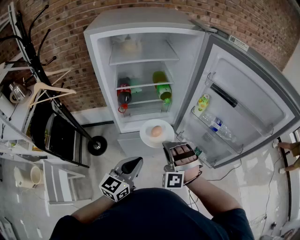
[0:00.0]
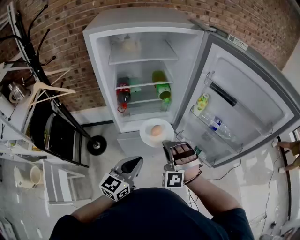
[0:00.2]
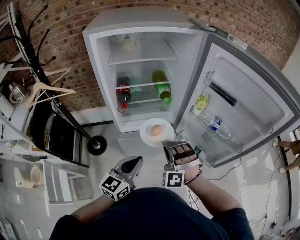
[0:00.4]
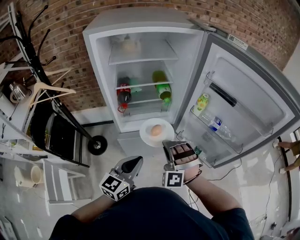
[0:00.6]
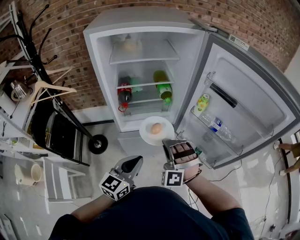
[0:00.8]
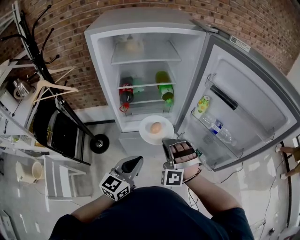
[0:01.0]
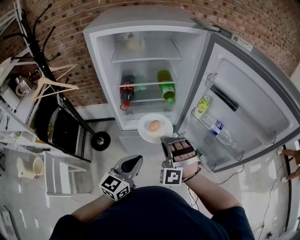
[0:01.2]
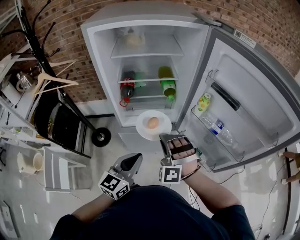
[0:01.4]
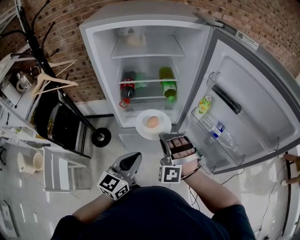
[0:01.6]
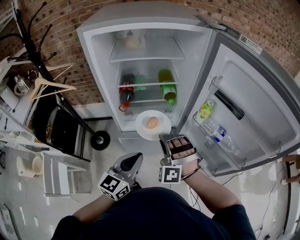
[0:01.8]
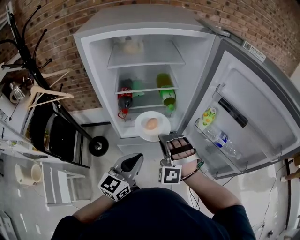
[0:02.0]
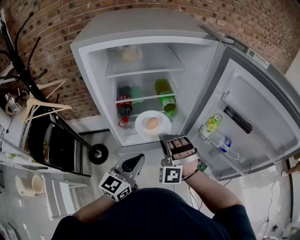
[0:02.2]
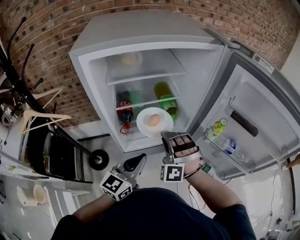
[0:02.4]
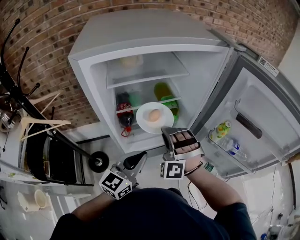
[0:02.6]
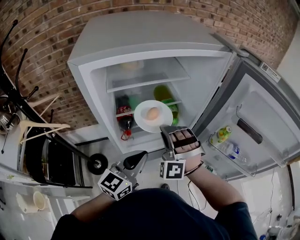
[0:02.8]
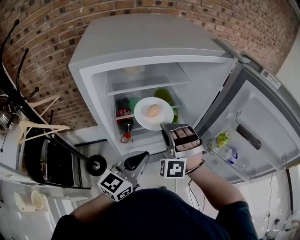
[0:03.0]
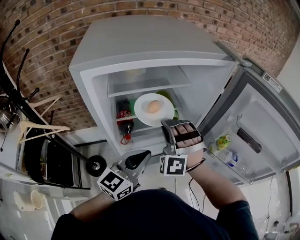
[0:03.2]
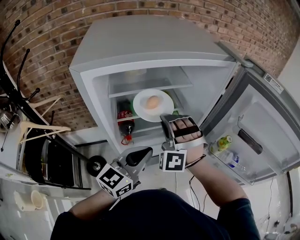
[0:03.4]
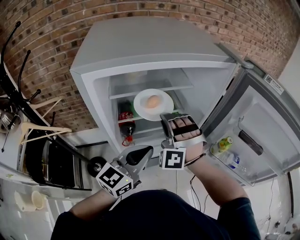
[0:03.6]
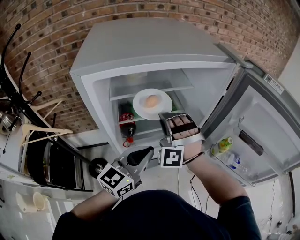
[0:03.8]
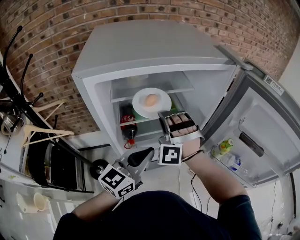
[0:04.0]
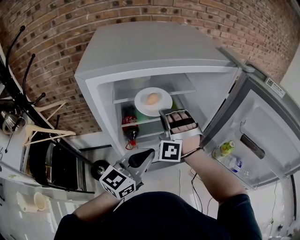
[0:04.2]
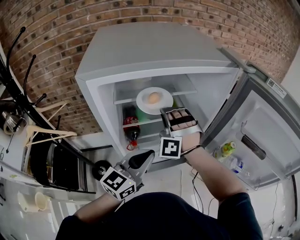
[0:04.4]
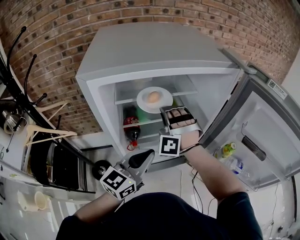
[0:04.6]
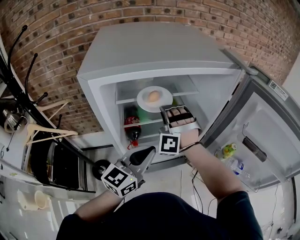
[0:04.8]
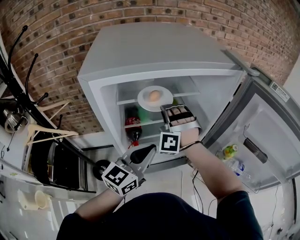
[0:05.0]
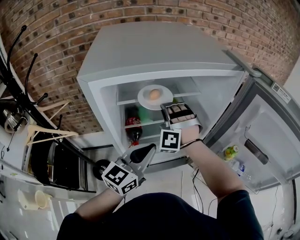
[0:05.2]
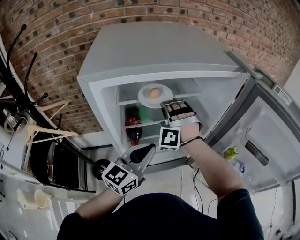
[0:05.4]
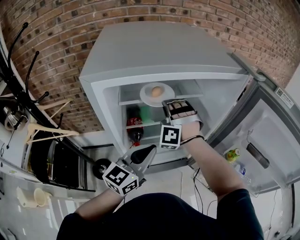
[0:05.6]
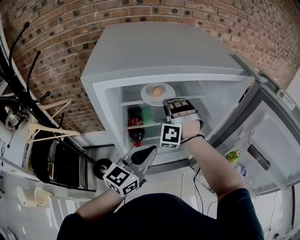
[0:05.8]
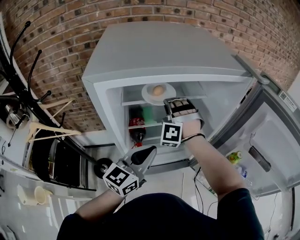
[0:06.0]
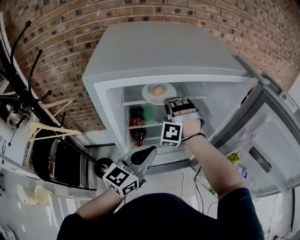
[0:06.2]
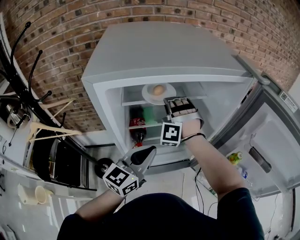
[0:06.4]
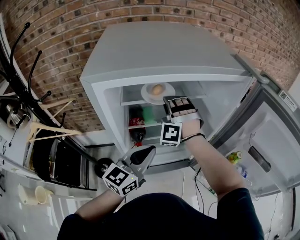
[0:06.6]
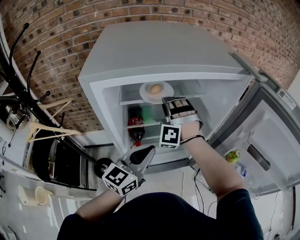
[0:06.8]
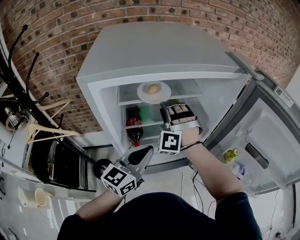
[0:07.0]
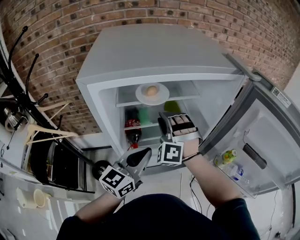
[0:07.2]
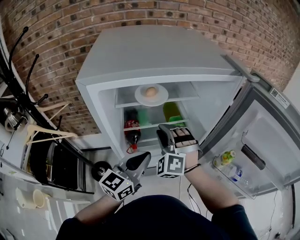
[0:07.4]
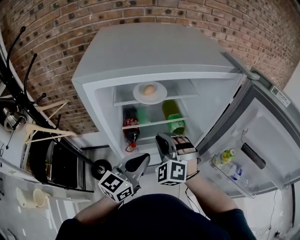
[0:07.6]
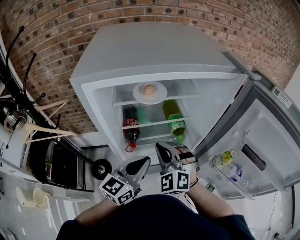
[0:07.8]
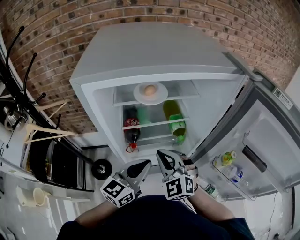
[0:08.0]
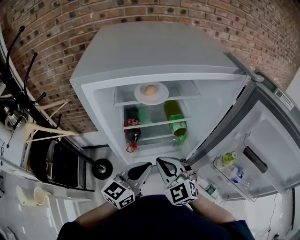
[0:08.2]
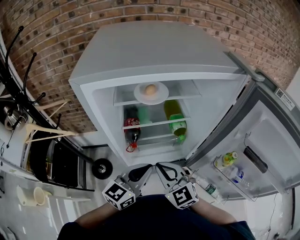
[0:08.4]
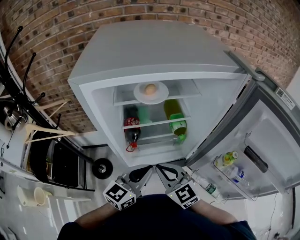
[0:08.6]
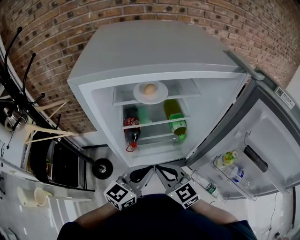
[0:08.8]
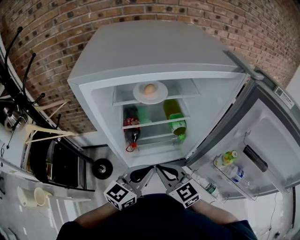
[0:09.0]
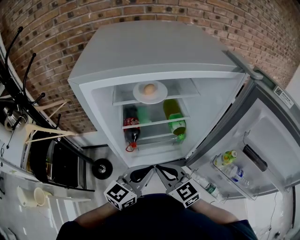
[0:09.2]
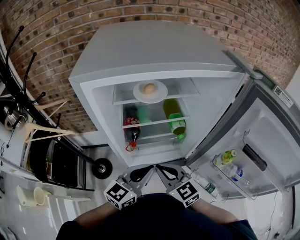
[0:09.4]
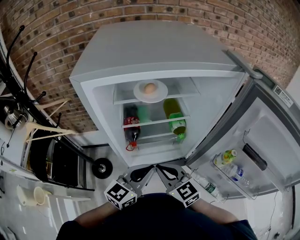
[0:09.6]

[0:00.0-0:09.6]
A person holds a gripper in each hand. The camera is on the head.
0:01.6 to 0:03.2: The left gripper changes place by roughly 20 cm.
0:06.4 to 0:08.0: The left gripper moves approximately 5 cm.

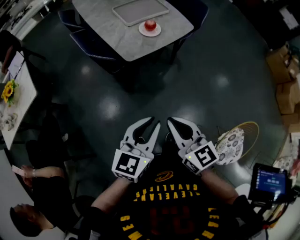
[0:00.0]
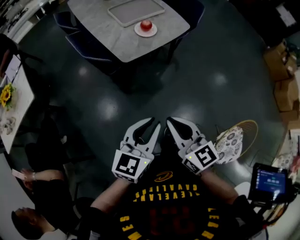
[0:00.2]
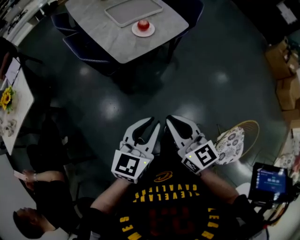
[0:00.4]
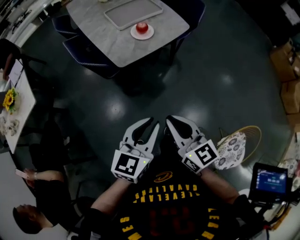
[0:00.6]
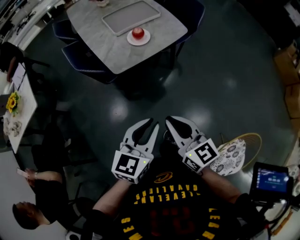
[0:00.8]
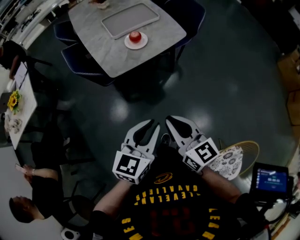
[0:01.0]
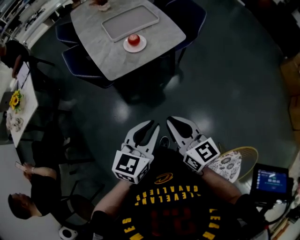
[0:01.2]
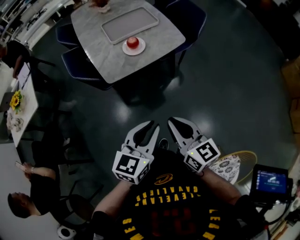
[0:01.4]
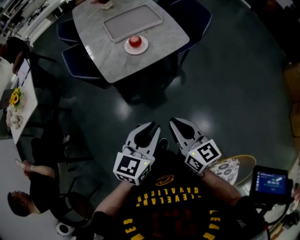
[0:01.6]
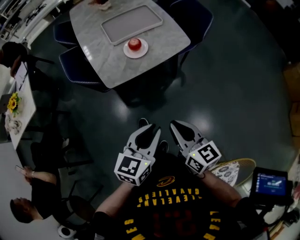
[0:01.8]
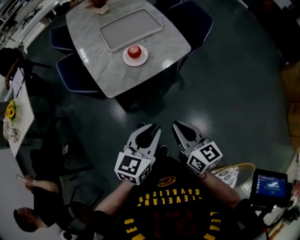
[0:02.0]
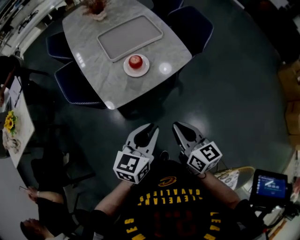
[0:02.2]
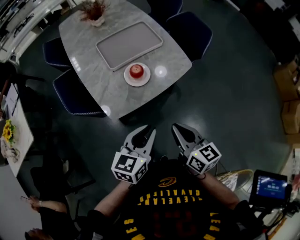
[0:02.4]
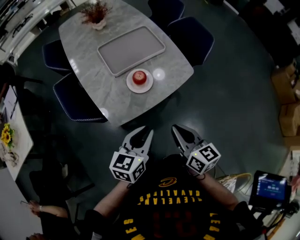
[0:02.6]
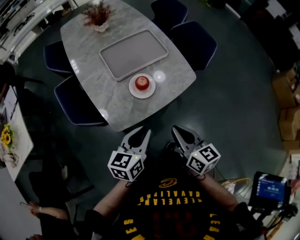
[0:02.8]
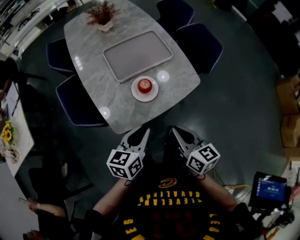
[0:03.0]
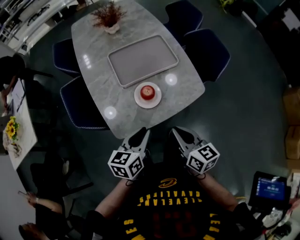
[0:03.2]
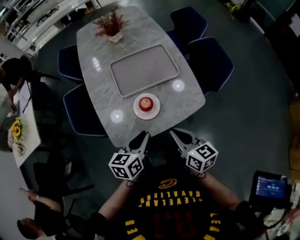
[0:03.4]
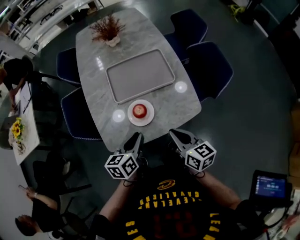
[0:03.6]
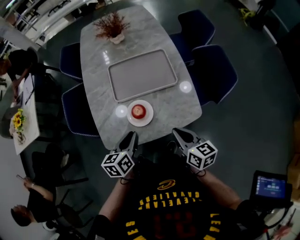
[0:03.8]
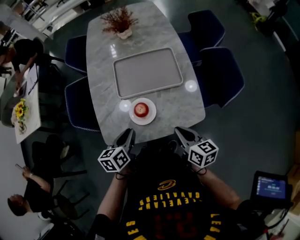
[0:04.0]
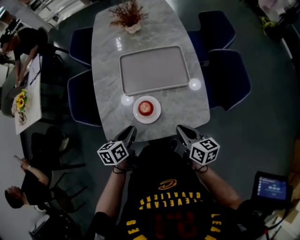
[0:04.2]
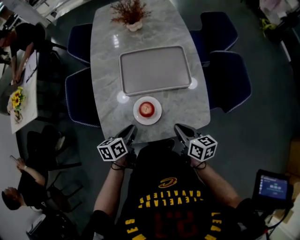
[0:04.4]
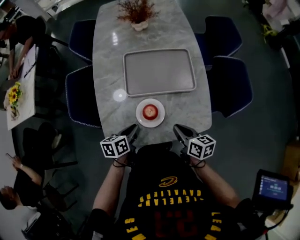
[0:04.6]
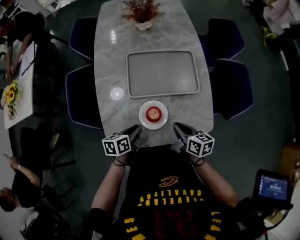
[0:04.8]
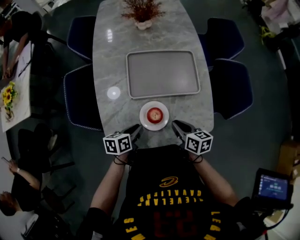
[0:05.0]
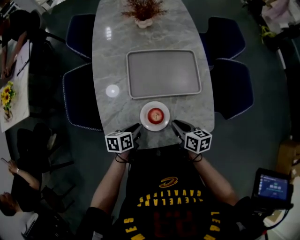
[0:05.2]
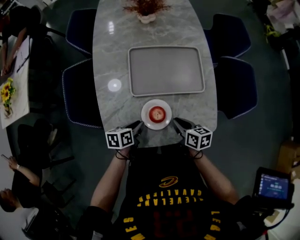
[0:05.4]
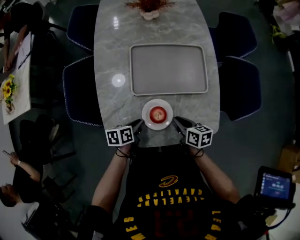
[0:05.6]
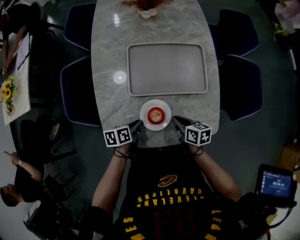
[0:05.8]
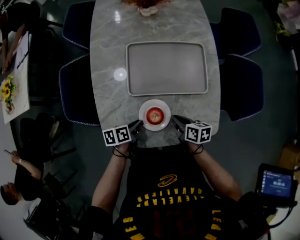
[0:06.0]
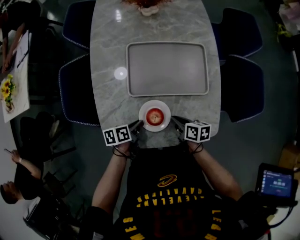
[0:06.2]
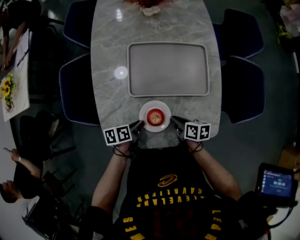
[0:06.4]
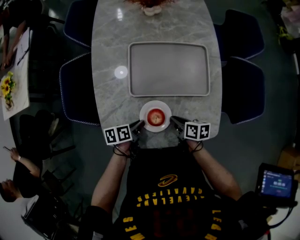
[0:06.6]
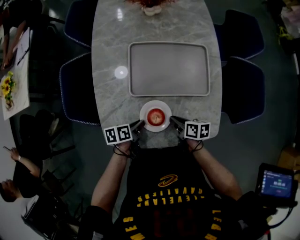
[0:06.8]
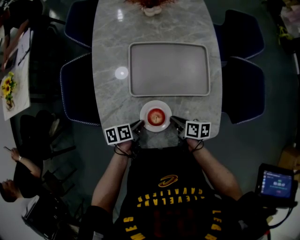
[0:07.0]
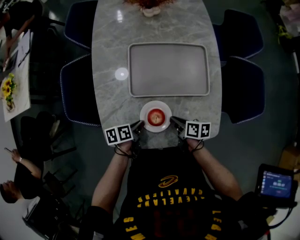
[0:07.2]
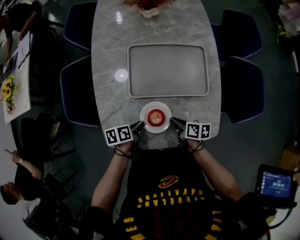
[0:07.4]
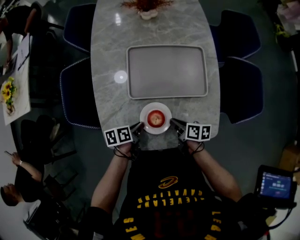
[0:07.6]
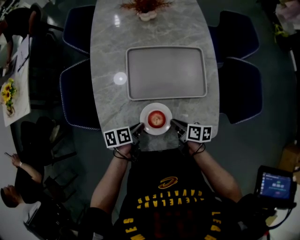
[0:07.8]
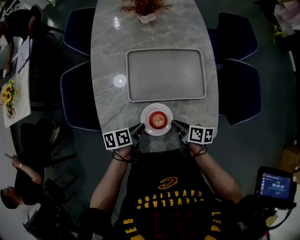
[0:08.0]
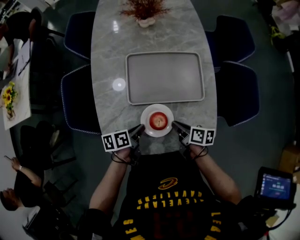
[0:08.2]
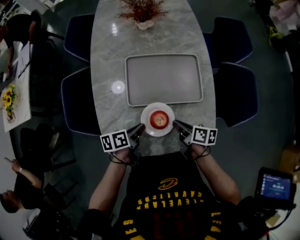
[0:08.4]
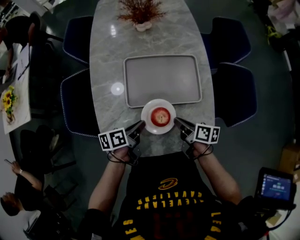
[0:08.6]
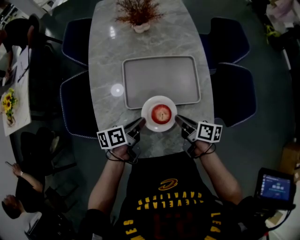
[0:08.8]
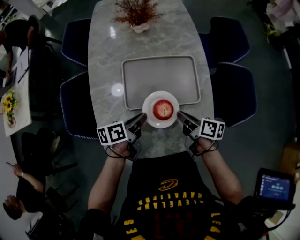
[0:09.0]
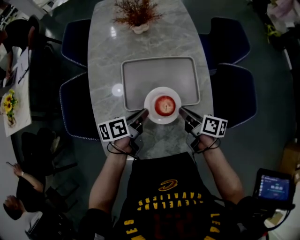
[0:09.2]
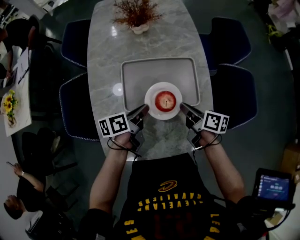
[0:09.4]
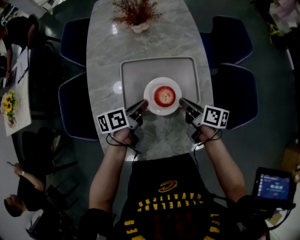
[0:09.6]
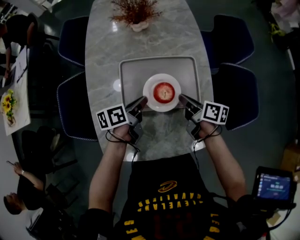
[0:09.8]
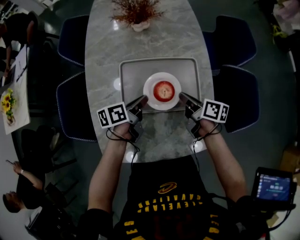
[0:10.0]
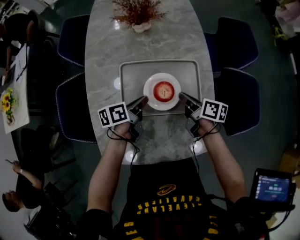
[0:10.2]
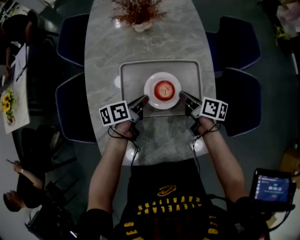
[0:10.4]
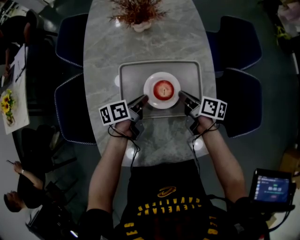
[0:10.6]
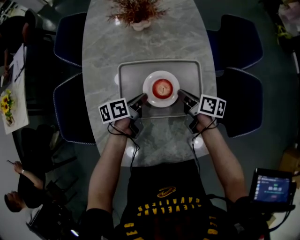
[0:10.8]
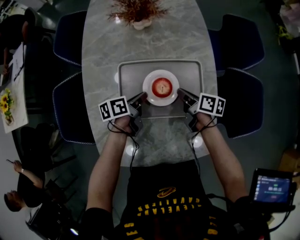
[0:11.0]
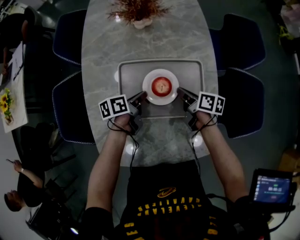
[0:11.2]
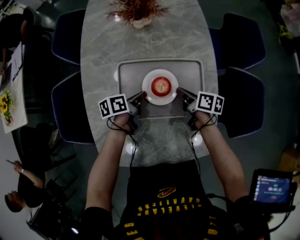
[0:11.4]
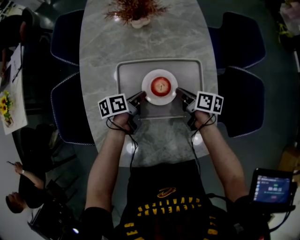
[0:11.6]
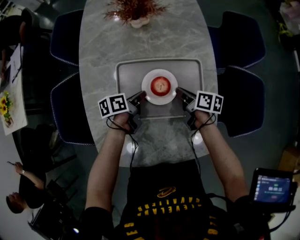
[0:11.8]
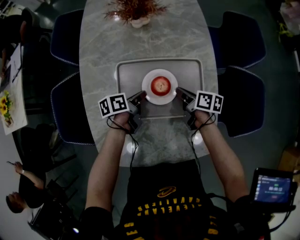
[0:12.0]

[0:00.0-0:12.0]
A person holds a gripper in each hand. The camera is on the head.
0:00.0 to 0:01.6: There are only small adjustments of the grippers.
0:01.6 to 0:03.0: The left gripper travels to the left and downward by roughly 10 cm, and moves approximately 10 cm forward and comes back, while the right gripper goes forward and returns, approximately 10 cm each way.
0:03.0 to 0:04.4: The left gripper shifts about 15 cm downward and to the left, and swivels some 30 degrees, while the right gripper moves left and right over some 15 cm, changing direction 2 times.
0:04.4 to 0:06.0: The left gripper moves to the right, backward and downward, about 15 cm. The right gripper shifts approximately 15 cm downward, backward and to the right.
0:06.0 to 0:07.6: The grippers make only small movements.
0:07.6 to 0:09.0: The grippers both shift forward and upward by about 15 cm.
0:09.0 to 0:10.4: The two grippers go approximately 5 cm forward.
0:10.4 to 0:12.0: The grippers make only small movements.

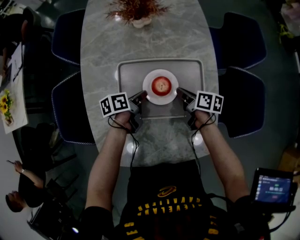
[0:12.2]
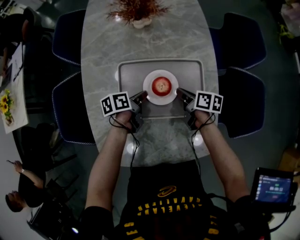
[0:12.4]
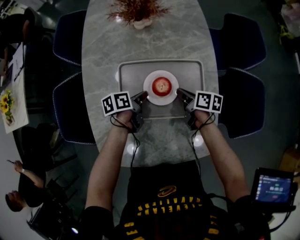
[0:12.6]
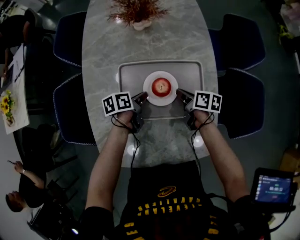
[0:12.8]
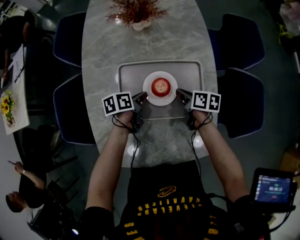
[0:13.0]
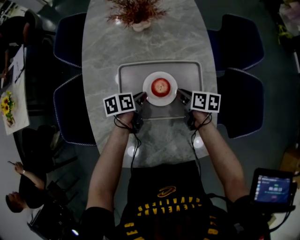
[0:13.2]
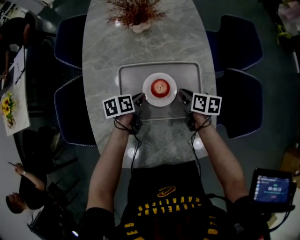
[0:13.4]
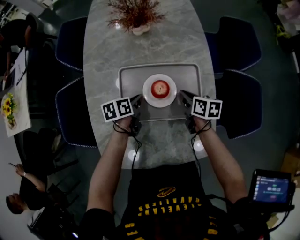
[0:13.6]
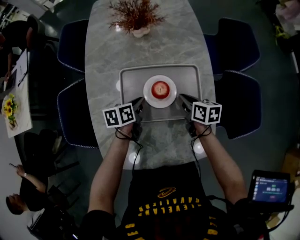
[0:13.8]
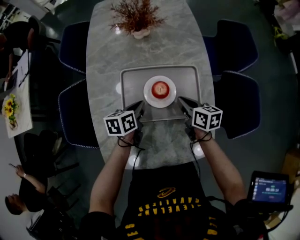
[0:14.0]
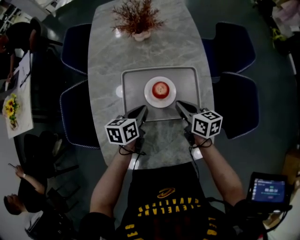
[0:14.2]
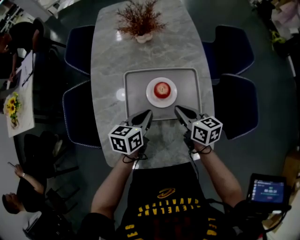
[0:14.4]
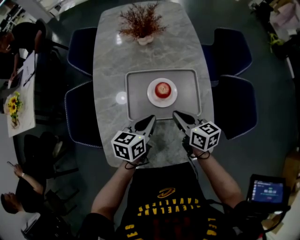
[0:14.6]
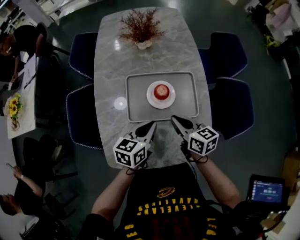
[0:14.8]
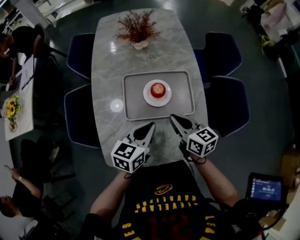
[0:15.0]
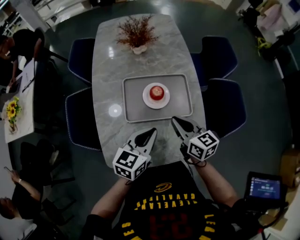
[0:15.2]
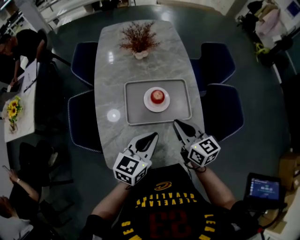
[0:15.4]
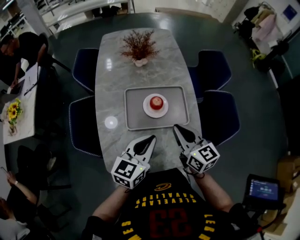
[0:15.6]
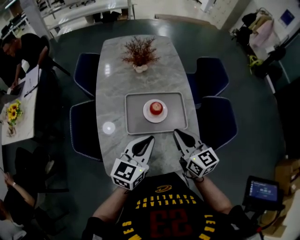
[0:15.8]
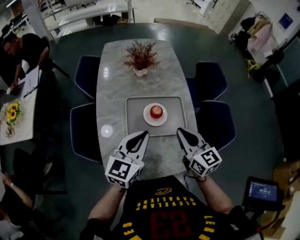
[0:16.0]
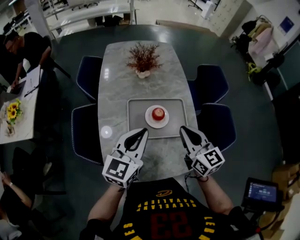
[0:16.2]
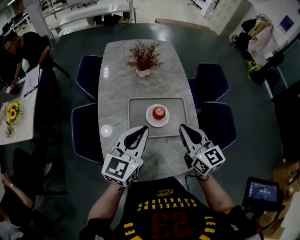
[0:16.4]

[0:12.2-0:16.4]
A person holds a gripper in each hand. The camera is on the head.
0:12.2 to 0:13.6: The grippers stay close to where they were, moving slightly.
0:13.6 to 0:15.0: The right gripper moves upward, backward and to the left, some 20 cm, and swivels approximately 30 degrees; the left gripper travels upward and backward by about 25 cm, and rotates roughly 40 degrees.
0:15.0 to 0:16.4: The right gripper moves upward, about 15 cm, and changes its angle by roughly 20 degrees. Meanwhile the left gripper moves upward and to the left, approximately 15 cm, and turns by some 20 degrees.
